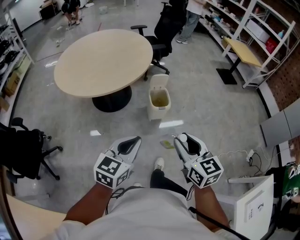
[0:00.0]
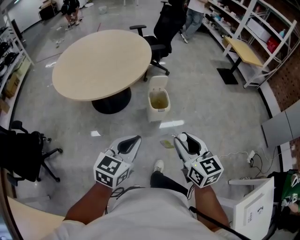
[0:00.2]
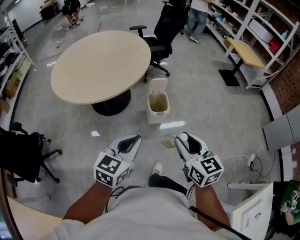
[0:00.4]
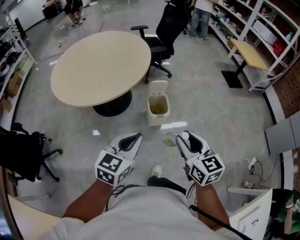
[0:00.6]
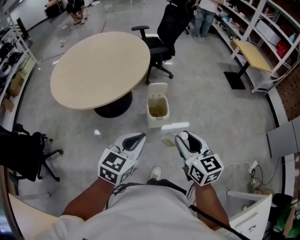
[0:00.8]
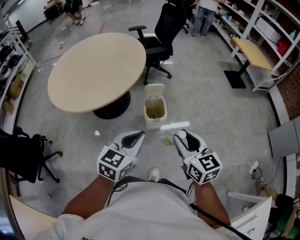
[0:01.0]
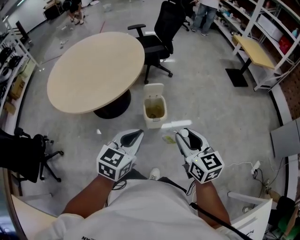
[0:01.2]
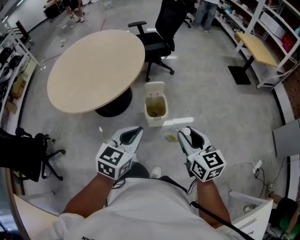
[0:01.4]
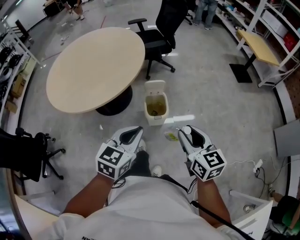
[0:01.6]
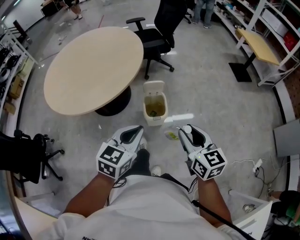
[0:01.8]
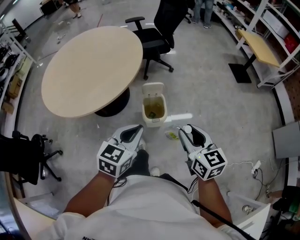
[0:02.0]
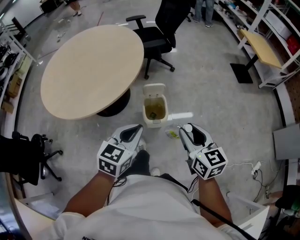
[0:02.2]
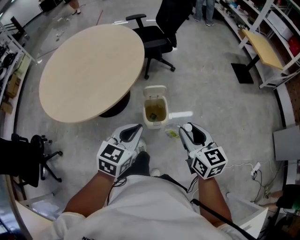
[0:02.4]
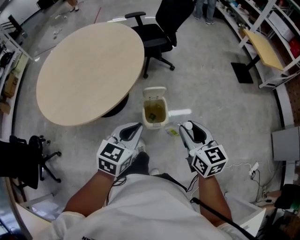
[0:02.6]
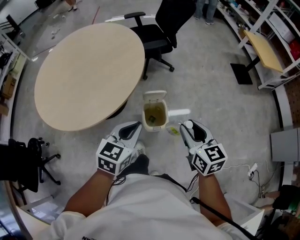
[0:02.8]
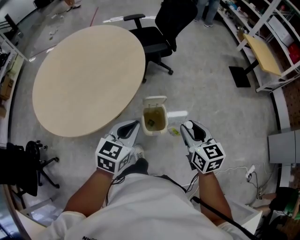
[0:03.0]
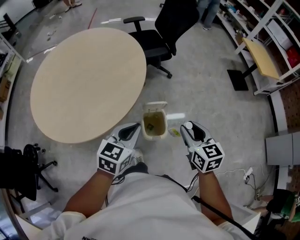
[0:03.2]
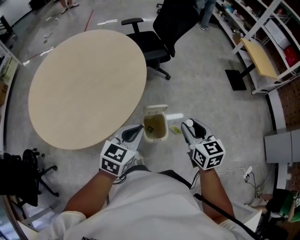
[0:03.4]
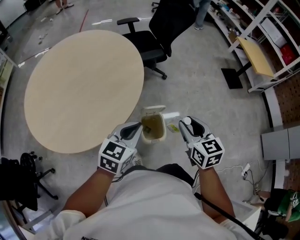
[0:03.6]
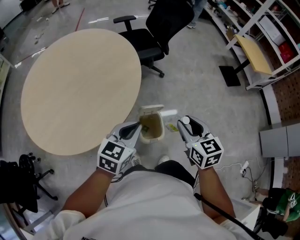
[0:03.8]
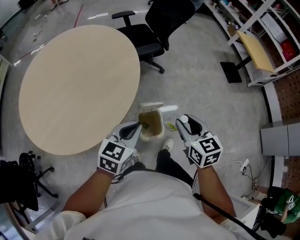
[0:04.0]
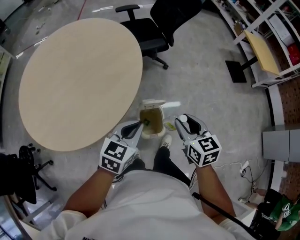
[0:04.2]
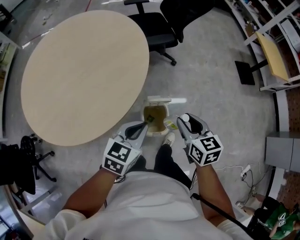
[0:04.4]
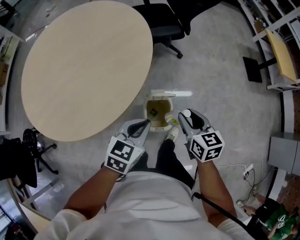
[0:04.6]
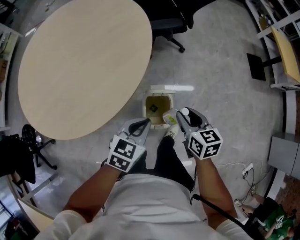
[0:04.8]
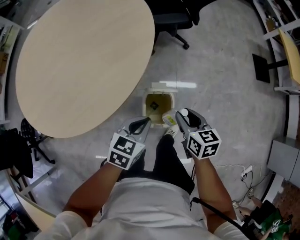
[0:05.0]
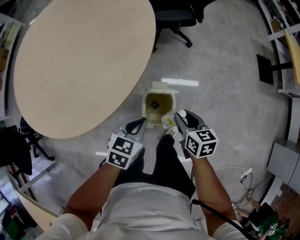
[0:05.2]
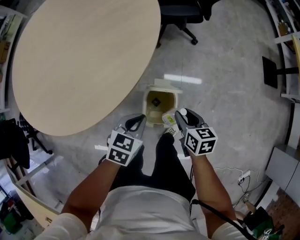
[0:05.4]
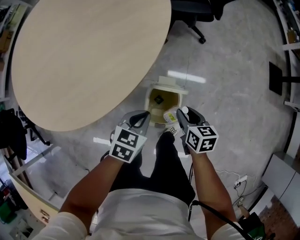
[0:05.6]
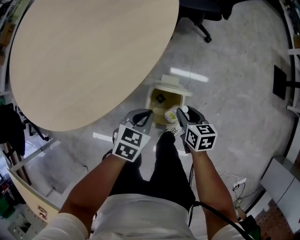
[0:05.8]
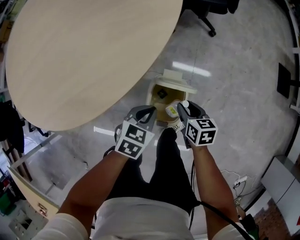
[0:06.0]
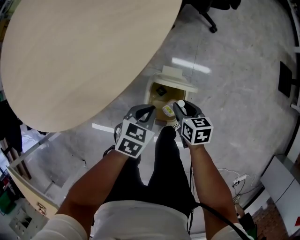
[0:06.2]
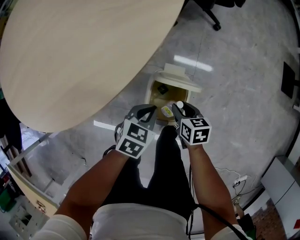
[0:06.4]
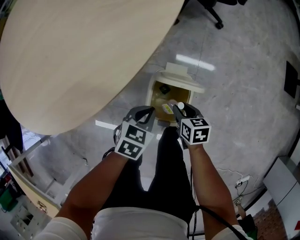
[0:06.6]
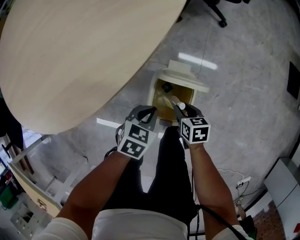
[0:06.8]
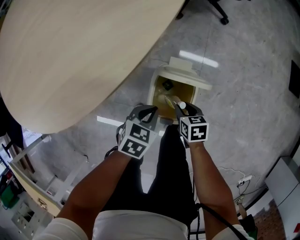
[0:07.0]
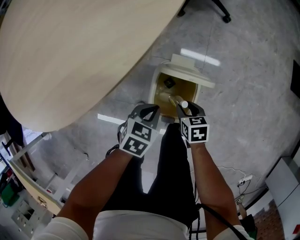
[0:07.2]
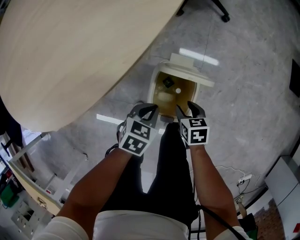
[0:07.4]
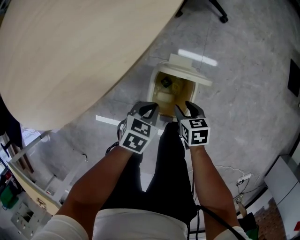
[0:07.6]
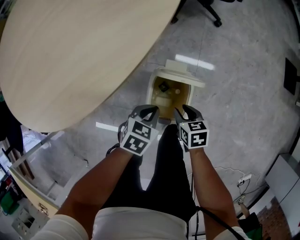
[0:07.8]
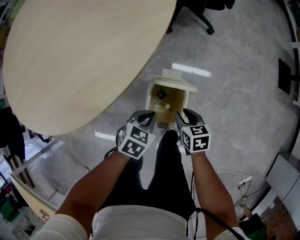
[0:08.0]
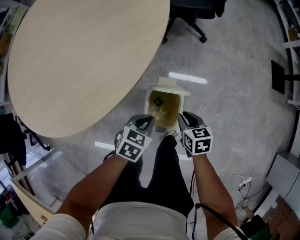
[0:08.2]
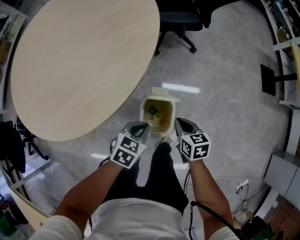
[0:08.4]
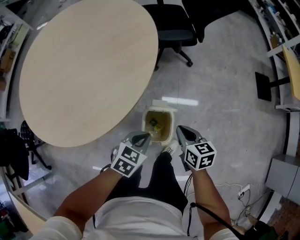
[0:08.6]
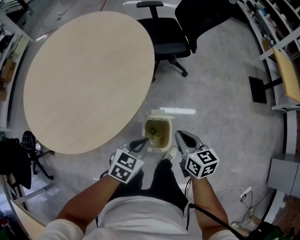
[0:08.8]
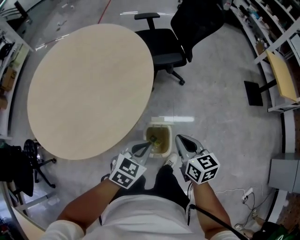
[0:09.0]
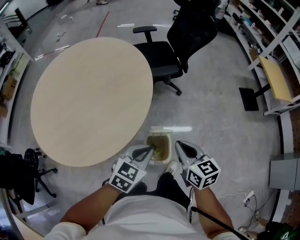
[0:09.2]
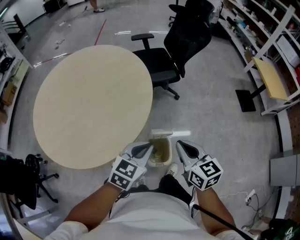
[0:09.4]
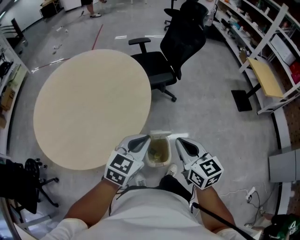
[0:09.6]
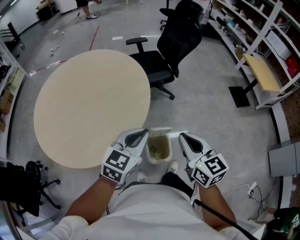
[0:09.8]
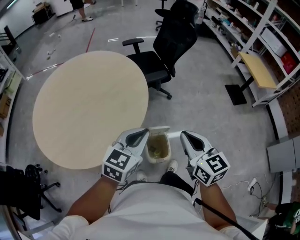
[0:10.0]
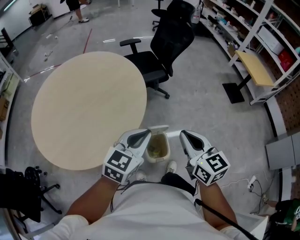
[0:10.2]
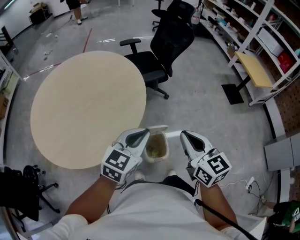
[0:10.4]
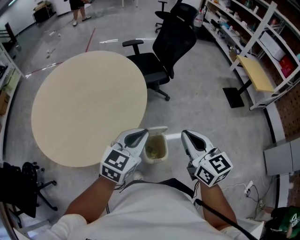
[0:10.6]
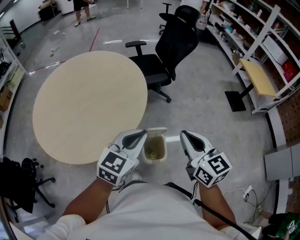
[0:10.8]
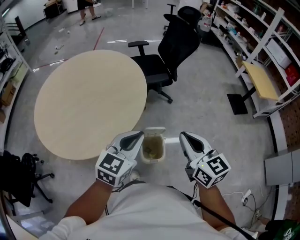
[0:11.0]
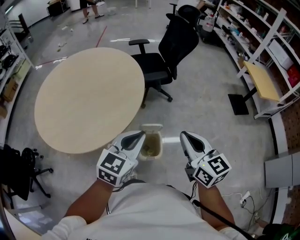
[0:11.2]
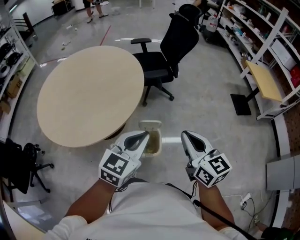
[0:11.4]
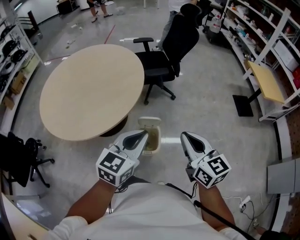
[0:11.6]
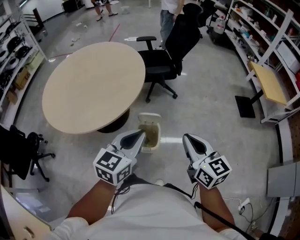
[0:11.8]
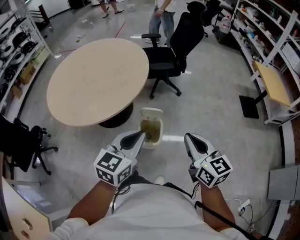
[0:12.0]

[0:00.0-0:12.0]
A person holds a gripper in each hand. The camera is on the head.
0:00.0 to 0:01.6: The grippers both shift forward and to the right by approximately 20 cm.
0:01.6 to 0:03.0: The two grippers go roughly 20 cm forward.
0:03.0 to 0:04.4: Both grippers travel together forward and downward, approximately 10 cm.
0:04.4 to 0:06.0: Both grippers travel together downward, about 25 cm. The left gripper turns by roughly 30 degrees. The right gripper swivels some 30 degrees.
0:06.0 to 0:07.6: The left gripper moves downward, about 10 cm. Meanwhile the right gripper moves downward and backward, approximately 10 cm.
0:07.6 to 0:09.0: The grippers both shift upward by some 35 cm. The right gripper changes its angle by some 30 degrees, and closes up. The left gripper turns by some 30 degrees.
0:09.0 to 0:10.4: Both grippers travel together upward, some 15 cm. The left gripper turns by some 20 degrees, while the right gripper rotates roughly 20 degrees.
0:10.4 to 0:12.0: The left gripper is displaced backward and to the right by about 15 cm, and rotates approximately 20 degrees, while the right gripper is displaced to the right and backward by about 15 cm.

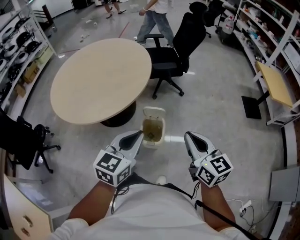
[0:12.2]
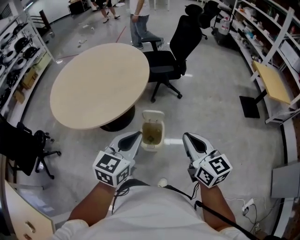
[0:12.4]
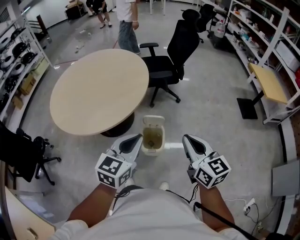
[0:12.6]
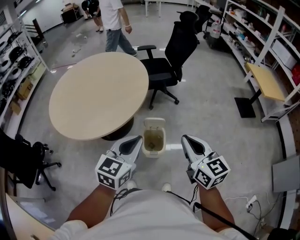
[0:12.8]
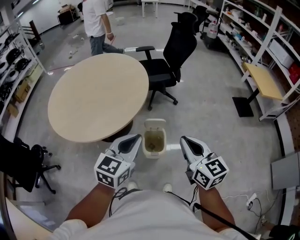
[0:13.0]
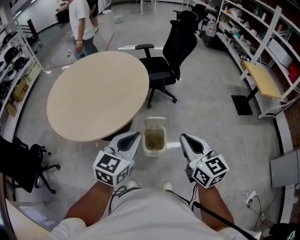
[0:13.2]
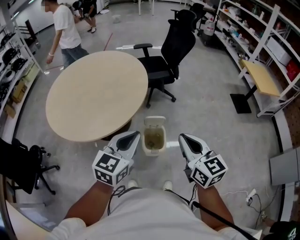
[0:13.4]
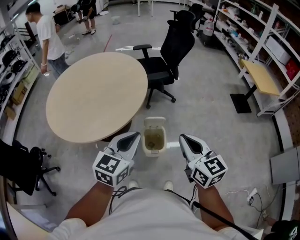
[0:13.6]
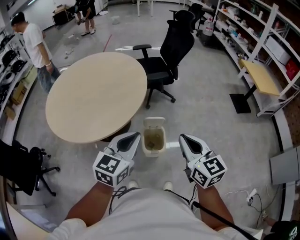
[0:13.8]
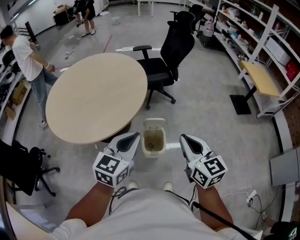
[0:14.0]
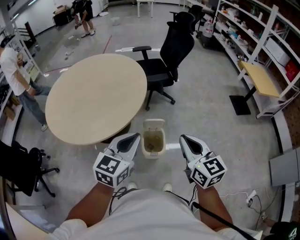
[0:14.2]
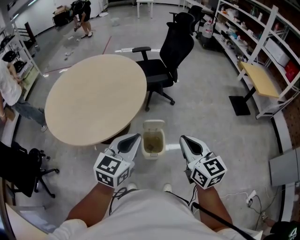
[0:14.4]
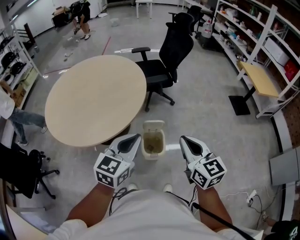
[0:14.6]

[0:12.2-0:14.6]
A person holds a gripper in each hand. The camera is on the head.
0:12.2 to 0:13.4: Both grippers travel together to the left, roughly 10 cm.
0:13.4 to 0:14.6: There are only small adjustments of the grippers.

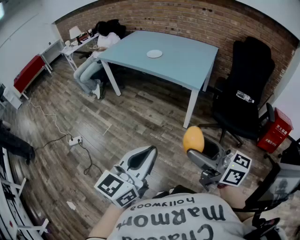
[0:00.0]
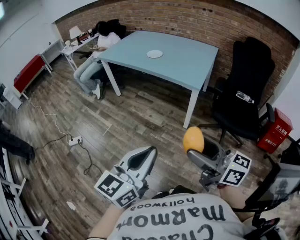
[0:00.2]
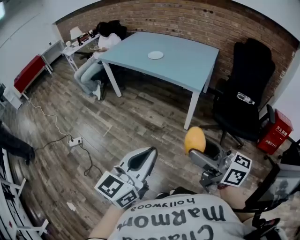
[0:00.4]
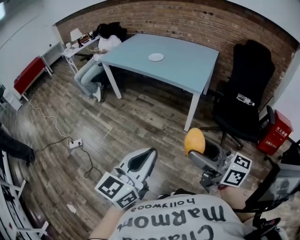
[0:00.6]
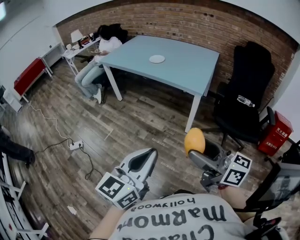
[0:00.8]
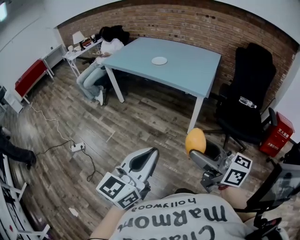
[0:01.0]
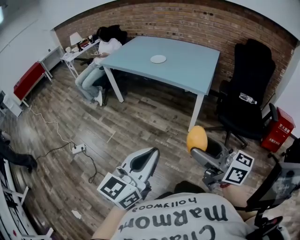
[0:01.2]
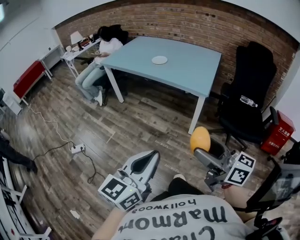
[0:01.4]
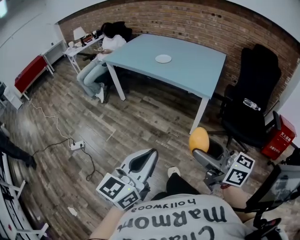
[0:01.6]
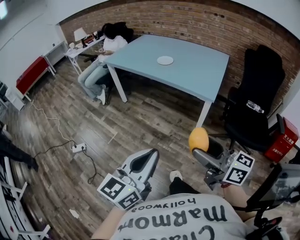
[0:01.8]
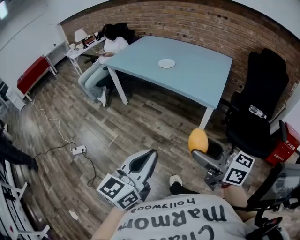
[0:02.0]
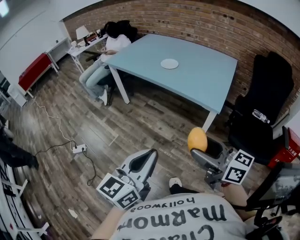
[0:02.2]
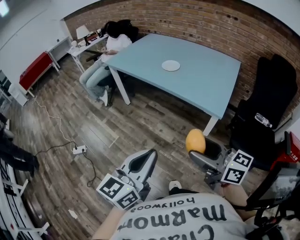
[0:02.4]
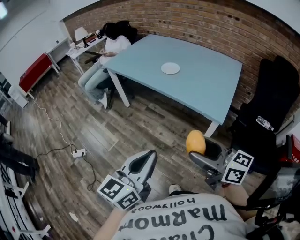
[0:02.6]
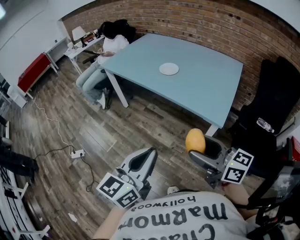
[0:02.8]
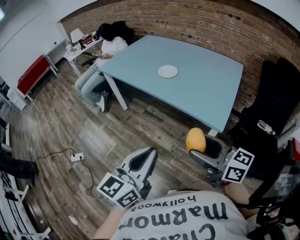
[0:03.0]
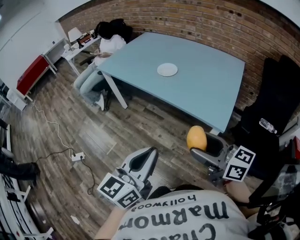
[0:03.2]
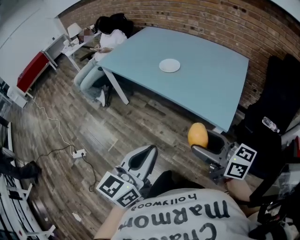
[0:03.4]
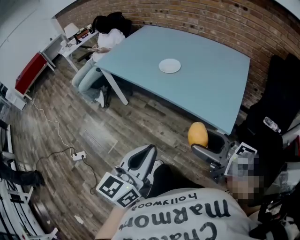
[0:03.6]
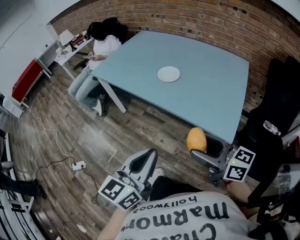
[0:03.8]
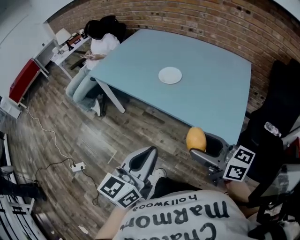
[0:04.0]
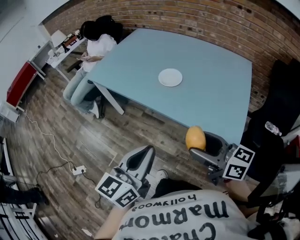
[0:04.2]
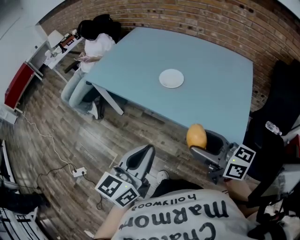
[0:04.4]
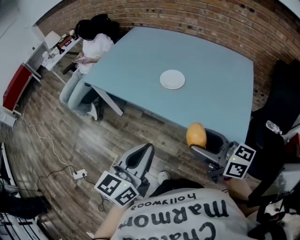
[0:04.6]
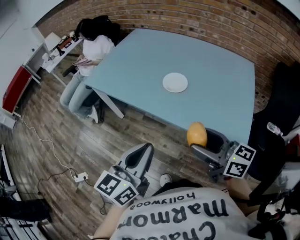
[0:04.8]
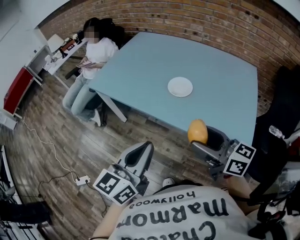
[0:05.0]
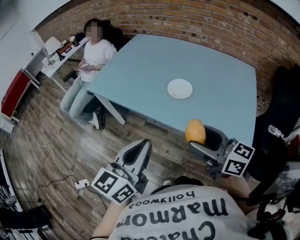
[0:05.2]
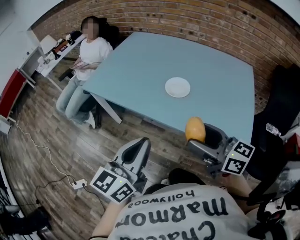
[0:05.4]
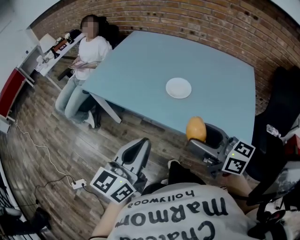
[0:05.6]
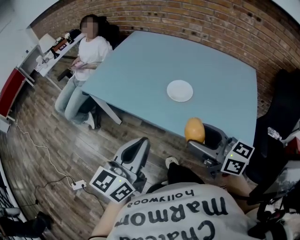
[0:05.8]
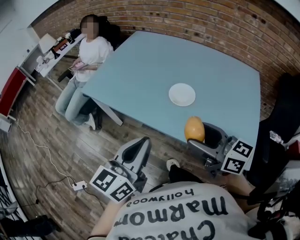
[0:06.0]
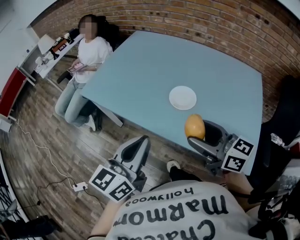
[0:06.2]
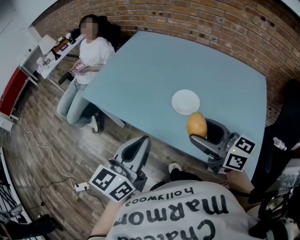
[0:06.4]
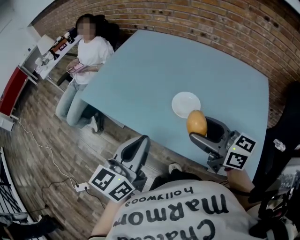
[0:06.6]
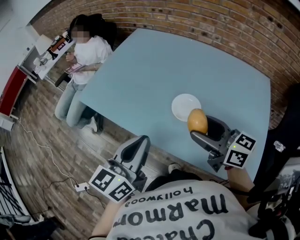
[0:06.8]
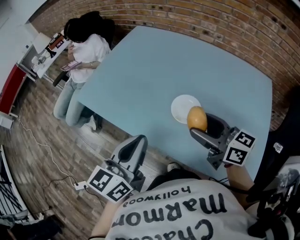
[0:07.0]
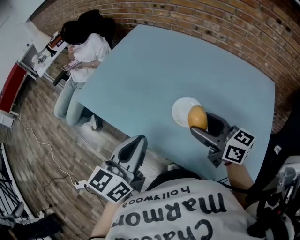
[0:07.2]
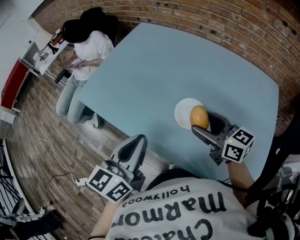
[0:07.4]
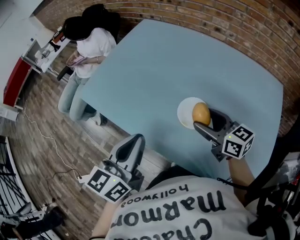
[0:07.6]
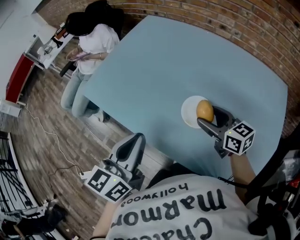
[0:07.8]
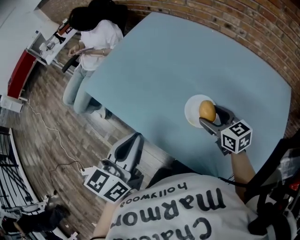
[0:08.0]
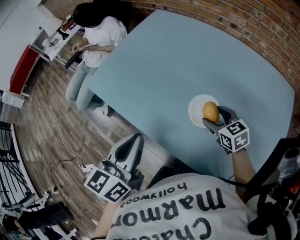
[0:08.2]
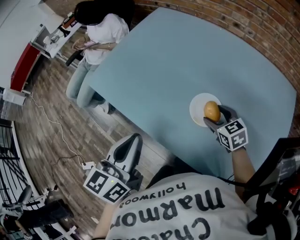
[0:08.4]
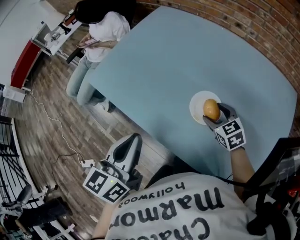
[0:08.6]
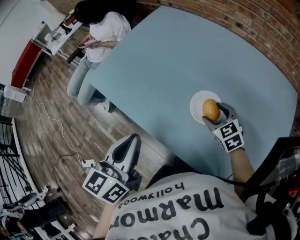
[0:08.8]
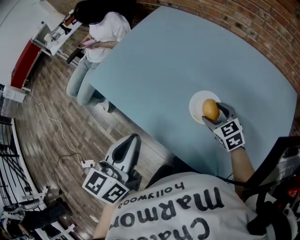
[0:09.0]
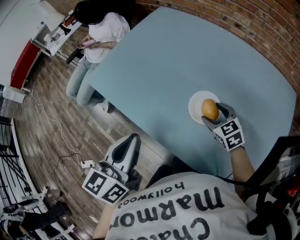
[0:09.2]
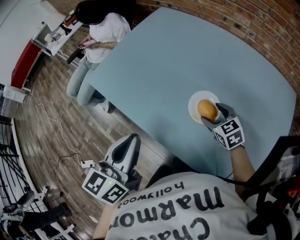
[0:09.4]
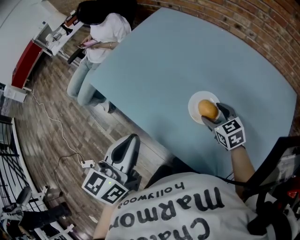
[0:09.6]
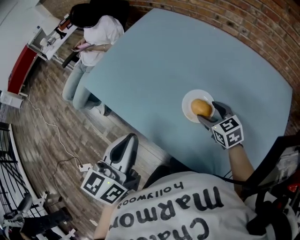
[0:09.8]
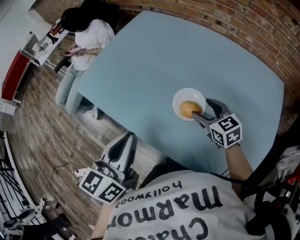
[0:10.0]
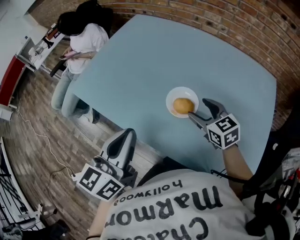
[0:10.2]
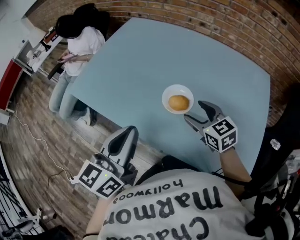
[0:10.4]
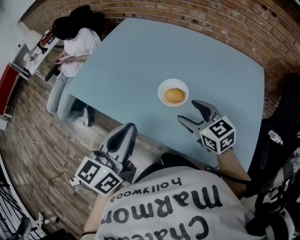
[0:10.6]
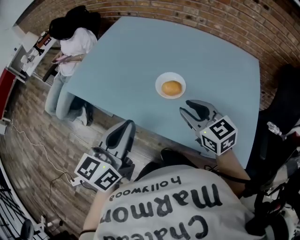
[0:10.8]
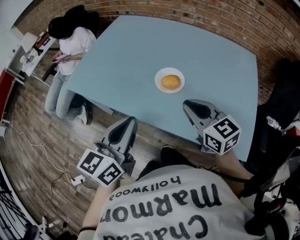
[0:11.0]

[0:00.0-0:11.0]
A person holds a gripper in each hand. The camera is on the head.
0:00.0 to 0:01.6: The right gripper goes roughly 5 cm forward. The left gripper goes about 10 cm to the left and forward.
0:01.6 to 0:03.2: Both grippers travel together forward, some 30 cm.
0:03.2 to 0:04.8: Both grippers travel together forward, roughly 25 cm.
0:04.8 to 0:06.2: The grippers both shift forward by about 15 cm.
0:06.2 to 0:07.8: The left gripper travels forward by approximately 15 cm. The right gripper goes about 25 cm forward and downward.
0:07.8 to 0:09.4: The right gripper heads downward, covering roughly 10 cm, and turns by approximately 30 degrees.
0:09.4 to 0:11.0: The left gripper moves backward and to the right, some 10 cm. Meanwhile the right gripper shifts approximately 25 cm backward and upward, rotates about 30 degrees, and closes.
